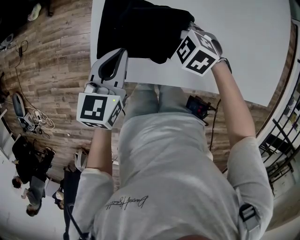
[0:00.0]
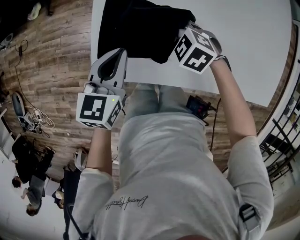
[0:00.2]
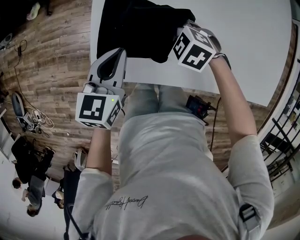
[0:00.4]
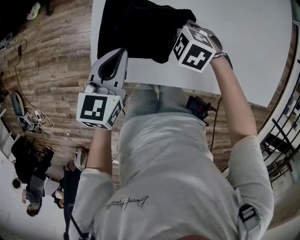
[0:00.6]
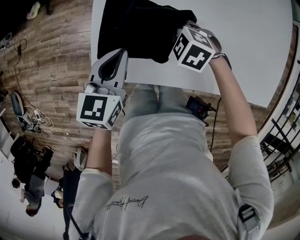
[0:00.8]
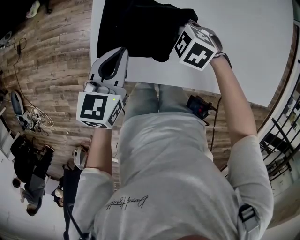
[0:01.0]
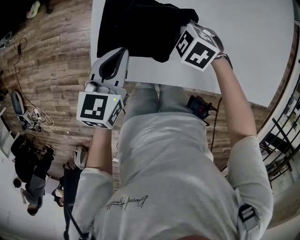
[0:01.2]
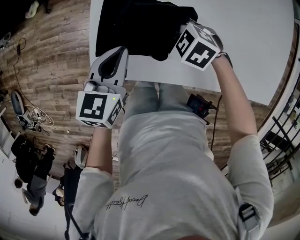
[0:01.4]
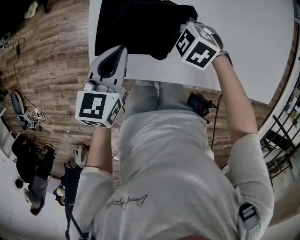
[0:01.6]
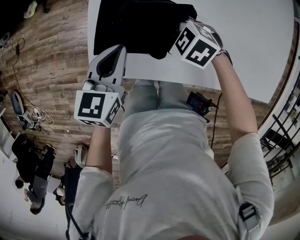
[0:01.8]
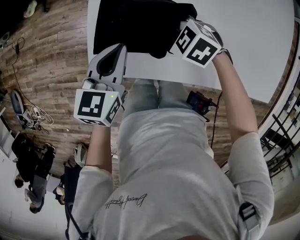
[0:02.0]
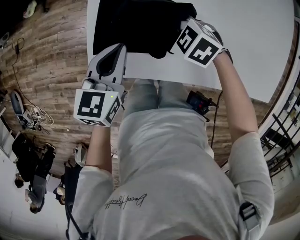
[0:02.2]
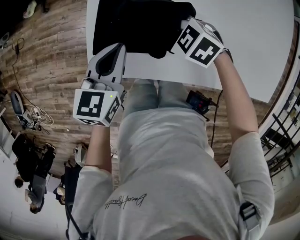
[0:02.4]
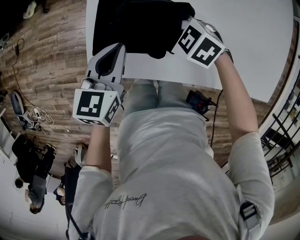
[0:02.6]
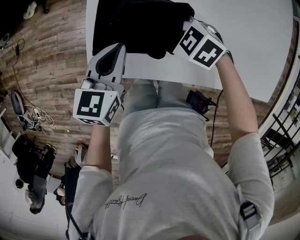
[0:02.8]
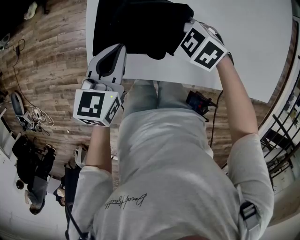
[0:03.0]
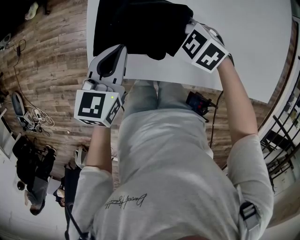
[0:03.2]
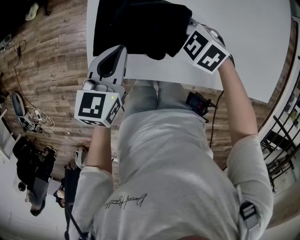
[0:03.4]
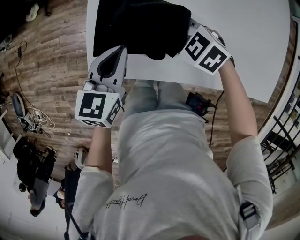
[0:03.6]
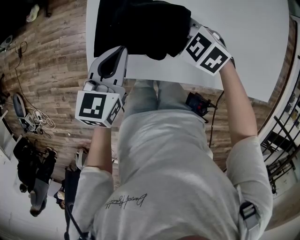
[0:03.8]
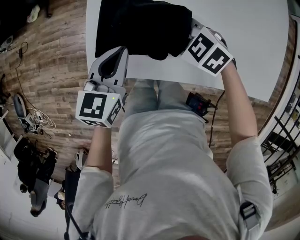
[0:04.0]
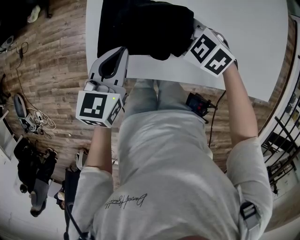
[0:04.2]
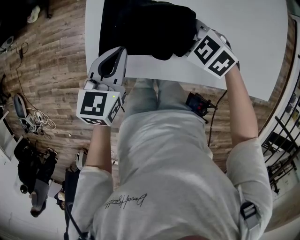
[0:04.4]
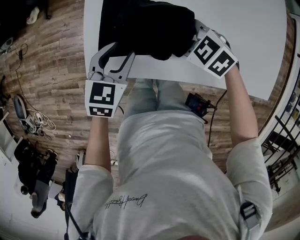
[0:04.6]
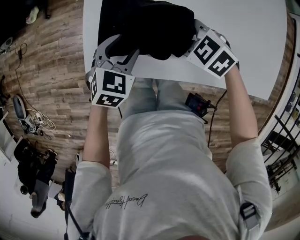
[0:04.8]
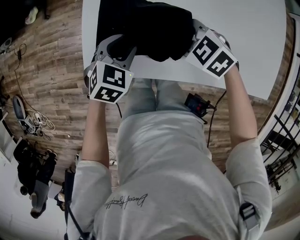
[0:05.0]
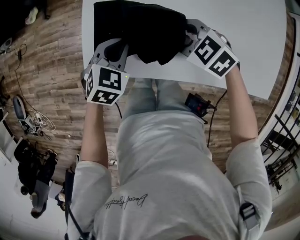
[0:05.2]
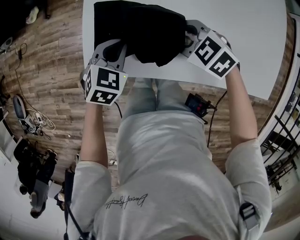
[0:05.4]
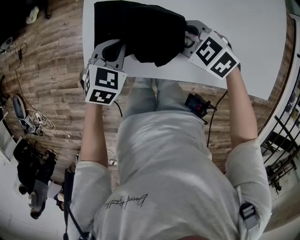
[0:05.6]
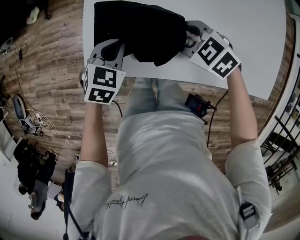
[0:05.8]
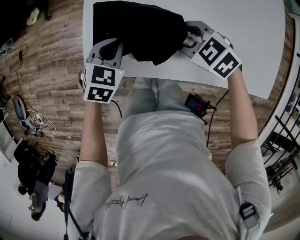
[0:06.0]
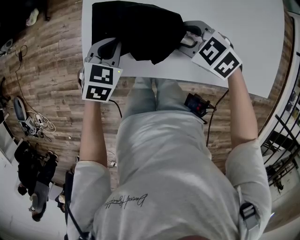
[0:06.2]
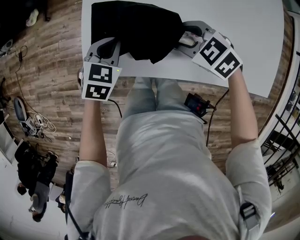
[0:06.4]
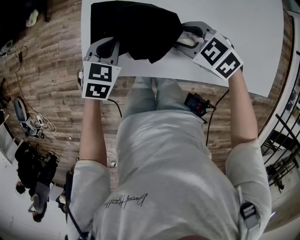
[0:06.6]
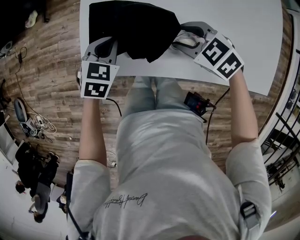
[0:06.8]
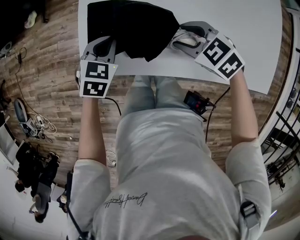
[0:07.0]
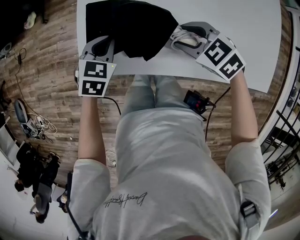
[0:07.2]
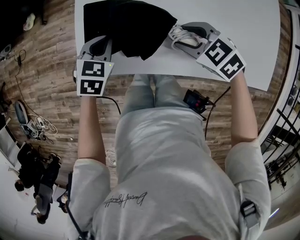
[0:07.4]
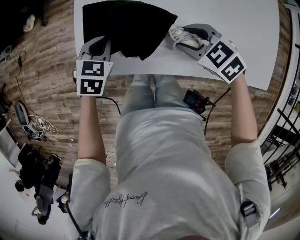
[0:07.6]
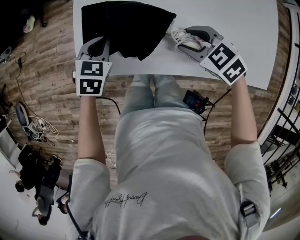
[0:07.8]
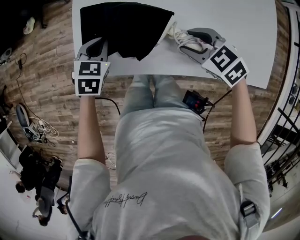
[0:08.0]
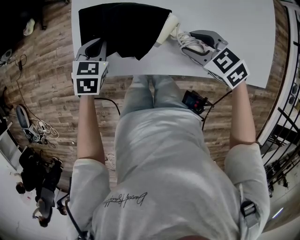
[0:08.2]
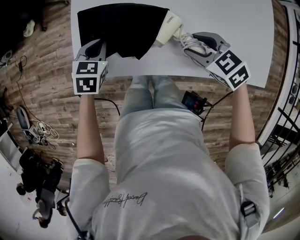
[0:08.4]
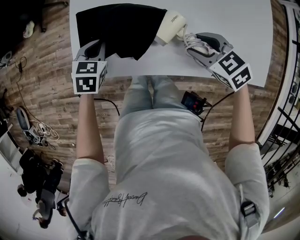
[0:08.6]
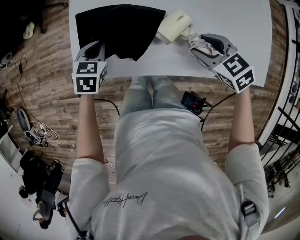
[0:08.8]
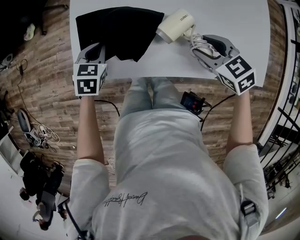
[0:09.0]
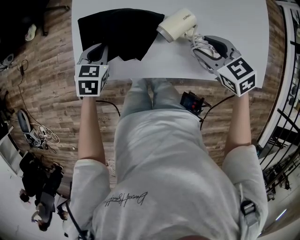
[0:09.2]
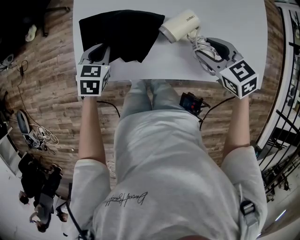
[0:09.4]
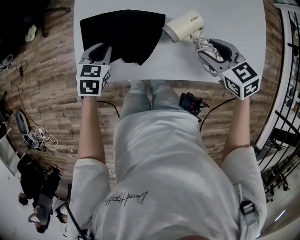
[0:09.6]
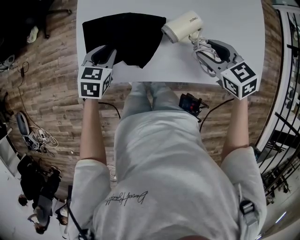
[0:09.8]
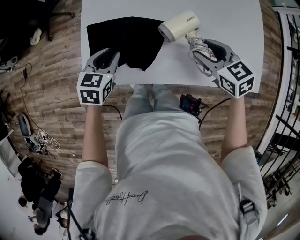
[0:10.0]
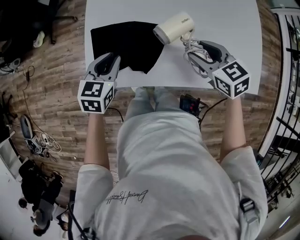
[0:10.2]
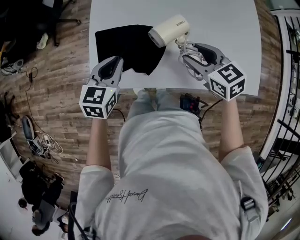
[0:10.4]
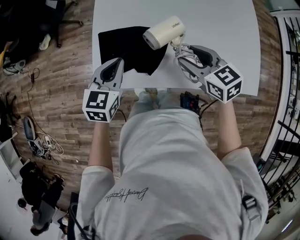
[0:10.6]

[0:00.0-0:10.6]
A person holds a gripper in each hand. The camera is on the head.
0:00.0 to 0:03.0: The grippers make only small movements.
0:03.0 to 0:04.6: The left gripper opens its fingers.
0:04.6 to 0:06.0: The left gripper closes up.
0:06.0 to 0:07.6: The right gripper moves approximately 5 cm.
0:07.6 to 0:09.0: The right gripper travels to the right by about 10 cm.
0:09.0 to 0:10.6: The right gripper goes roughly 10 cm upward and to the left. The left gripper goes approximately 15 cm upward, turns by about 20 degrees, and opens, then closes once more.

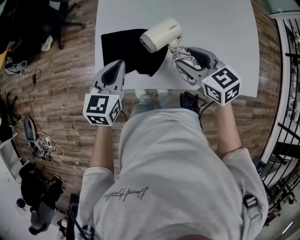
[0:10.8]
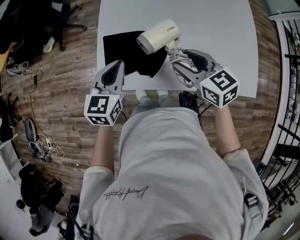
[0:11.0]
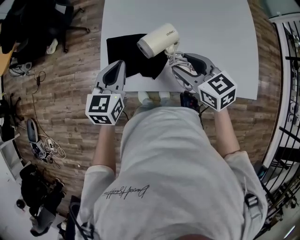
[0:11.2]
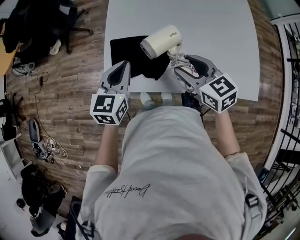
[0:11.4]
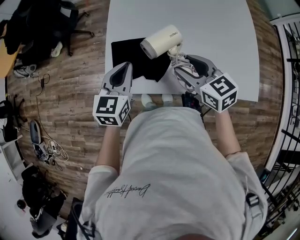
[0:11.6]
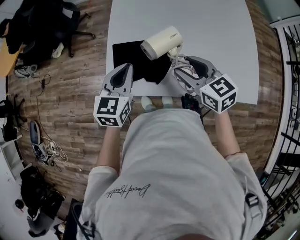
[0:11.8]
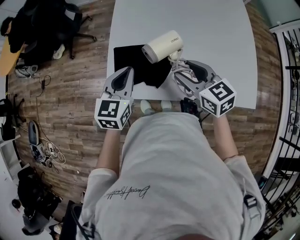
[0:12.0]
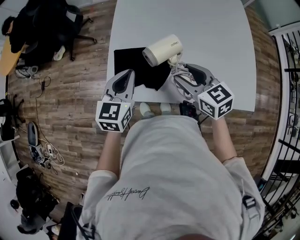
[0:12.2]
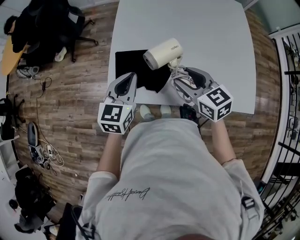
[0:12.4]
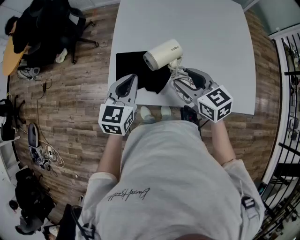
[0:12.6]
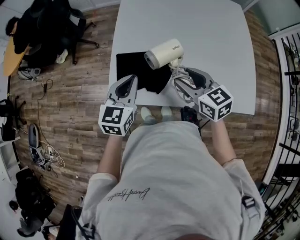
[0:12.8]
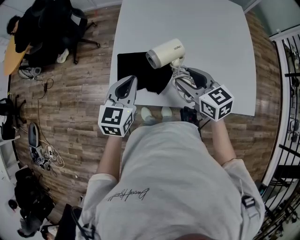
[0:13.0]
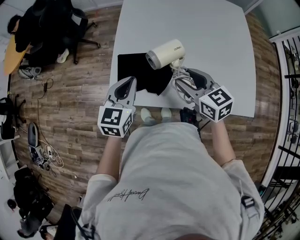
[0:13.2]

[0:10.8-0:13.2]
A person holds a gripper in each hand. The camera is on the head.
0:10.8 to 0:12.0: The left gripper travels upward by some 5 cm, while the right gripper shifts by some 5 cm.
0:12.0 to 0:13.2: There are only small adjustments of the grippers.

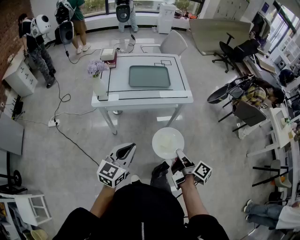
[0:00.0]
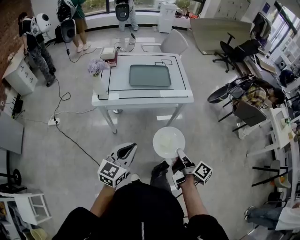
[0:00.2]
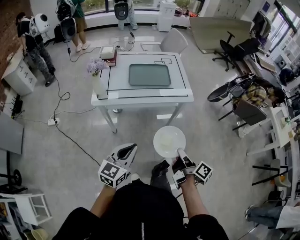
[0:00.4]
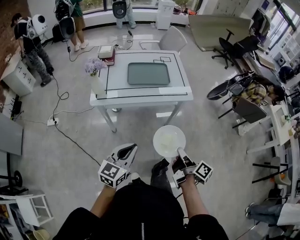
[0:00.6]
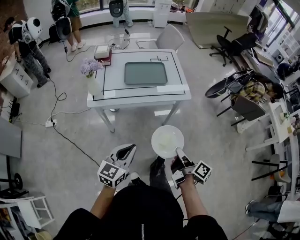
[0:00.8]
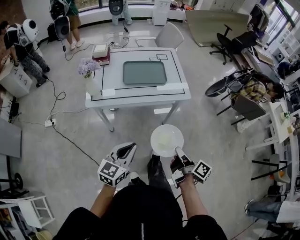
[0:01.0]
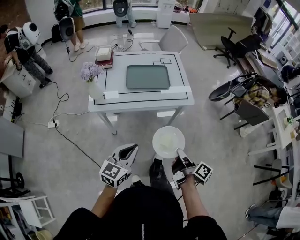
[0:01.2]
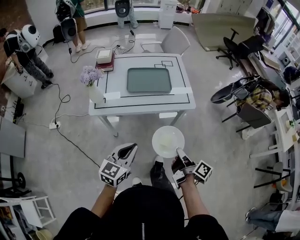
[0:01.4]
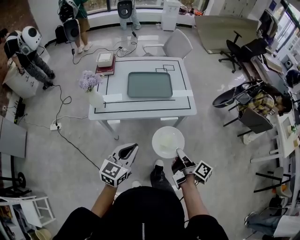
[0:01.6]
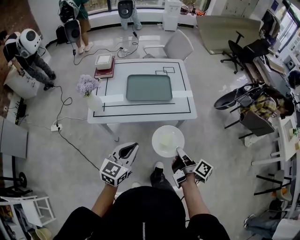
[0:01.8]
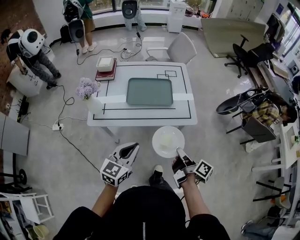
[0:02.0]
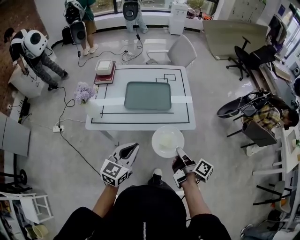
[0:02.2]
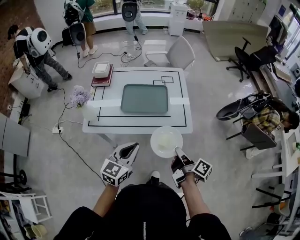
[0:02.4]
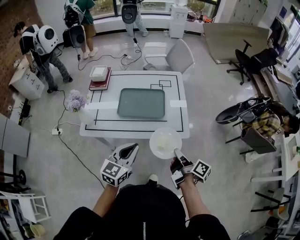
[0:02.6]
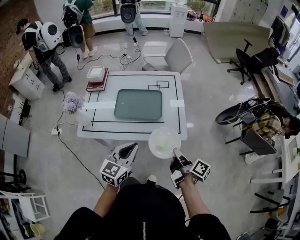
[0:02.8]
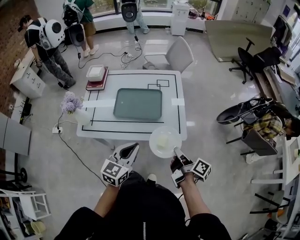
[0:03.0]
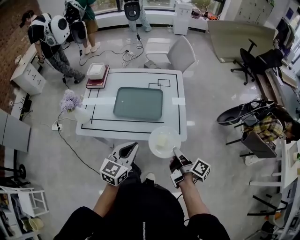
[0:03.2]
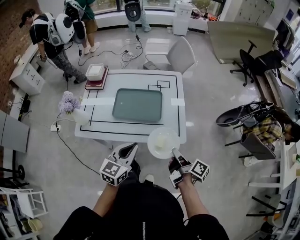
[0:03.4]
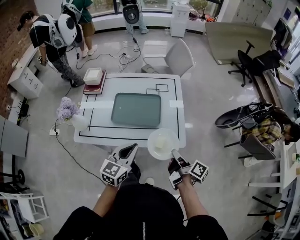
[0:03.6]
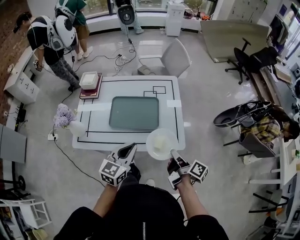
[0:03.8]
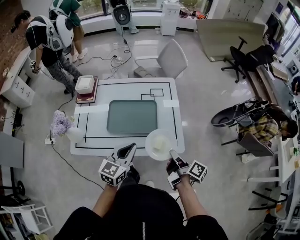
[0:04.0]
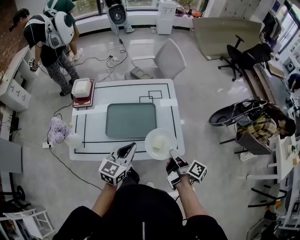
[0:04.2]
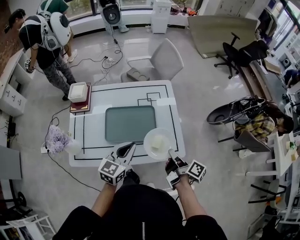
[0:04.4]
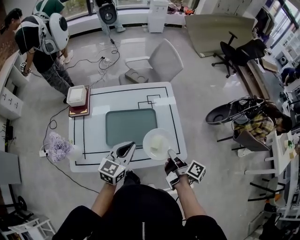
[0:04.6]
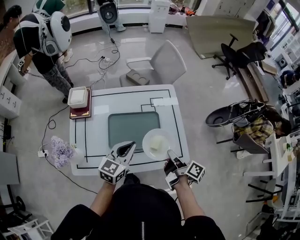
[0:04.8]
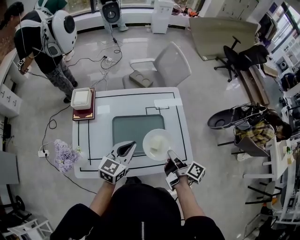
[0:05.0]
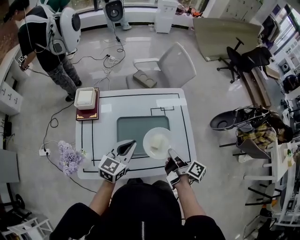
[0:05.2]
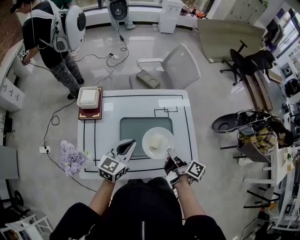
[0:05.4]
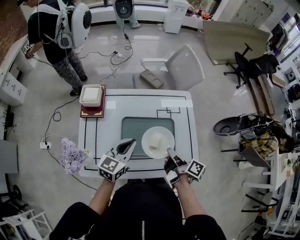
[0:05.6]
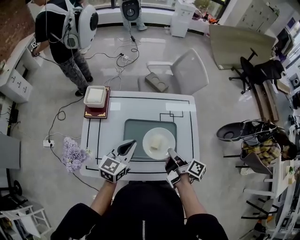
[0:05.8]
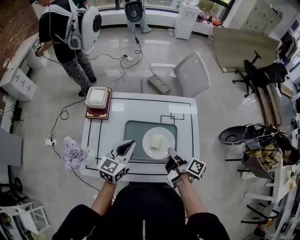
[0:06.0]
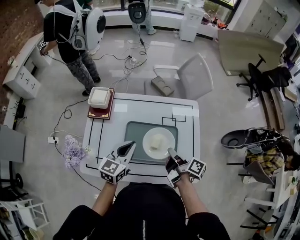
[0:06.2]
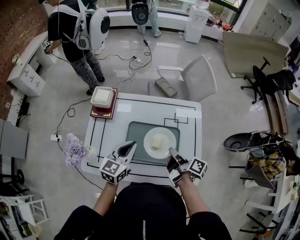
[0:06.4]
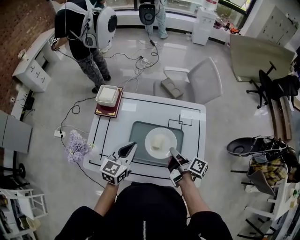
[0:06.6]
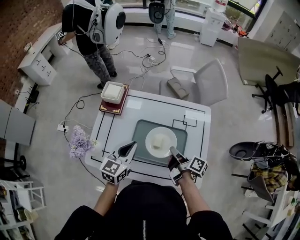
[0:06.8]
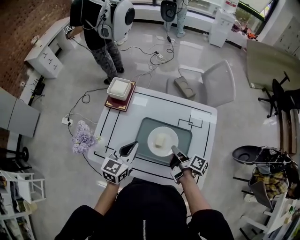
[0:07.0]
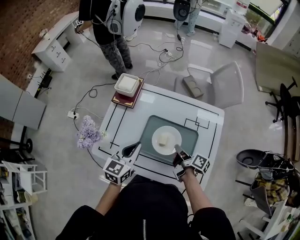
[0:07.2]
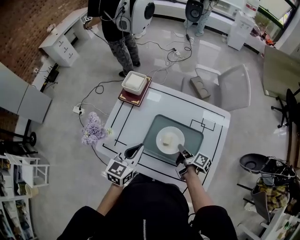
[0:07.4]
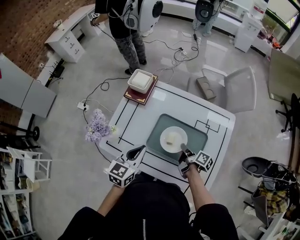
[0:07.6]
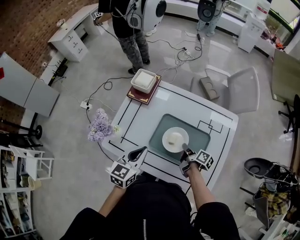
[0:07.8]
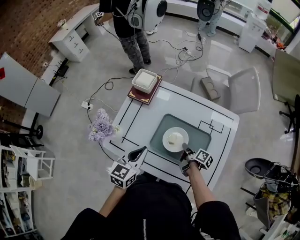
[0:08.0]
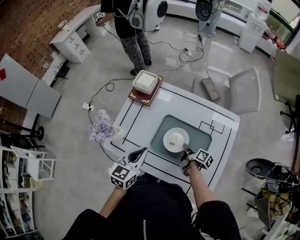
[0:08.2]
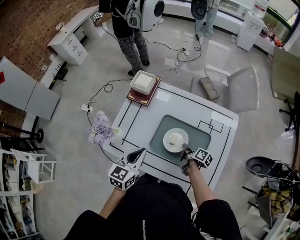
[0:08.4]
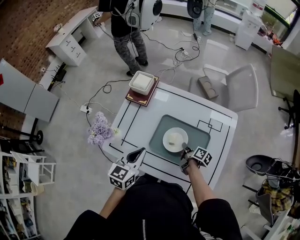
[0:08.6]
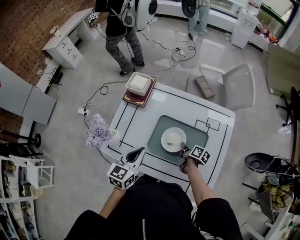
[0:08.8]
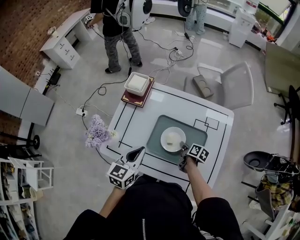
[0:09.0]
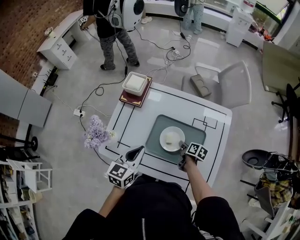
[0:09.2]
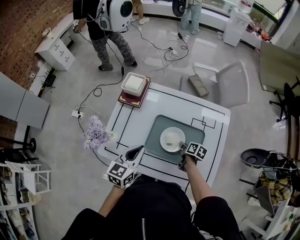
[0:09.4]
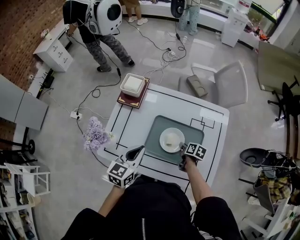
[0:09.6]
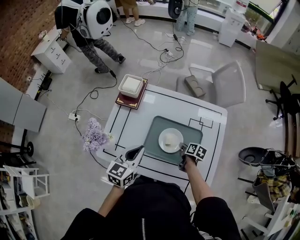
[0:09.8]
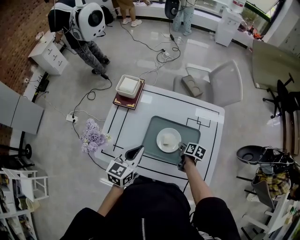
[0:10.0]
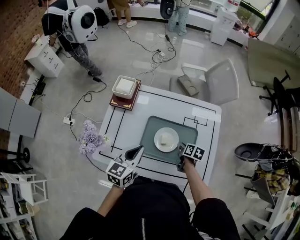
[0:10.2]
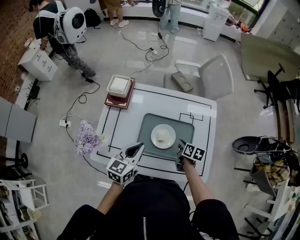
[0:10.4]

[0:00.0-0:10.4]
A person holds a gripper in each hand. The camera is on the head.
0:00.0 to 0:01.4: Both grippers move forward, roughly 10 cm.
0:01.4 to 0:03.0: Both grippers travel together forward and to the right, approximately 25 cm.
0:03.0 to 0:04.4: Both grippers travel together forward, some 15 cm.
0:04.4 to 0:06.0: The two grippers go roughly 20 cm to the left and forward.
0:06.0 to 0:07.4: The left gripper travels to the left by roughly 5 cm, and swivels roughly 20 degrees. The right gripper travels downward and forward by some 10 cm.
0:07.4 to 0:09.0: The right gripper moves downward, approximately 10 cm, and rotates approximately 20 degrees.
0:09.0 to 0:10.4: The right gripper heads upward, covering some 5 cm.
